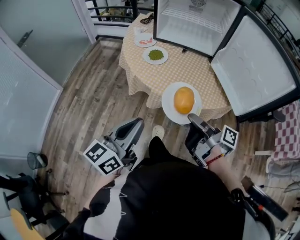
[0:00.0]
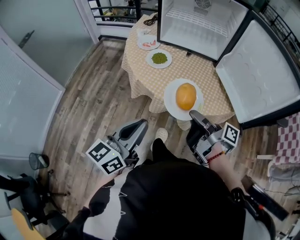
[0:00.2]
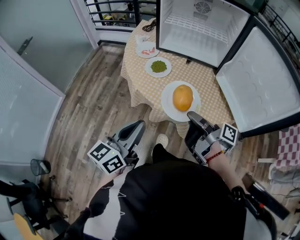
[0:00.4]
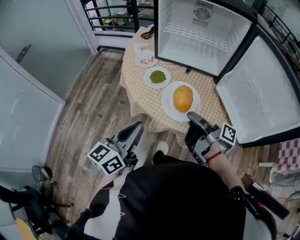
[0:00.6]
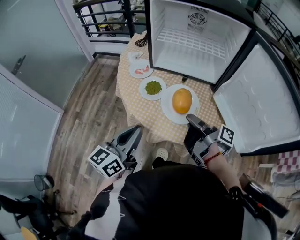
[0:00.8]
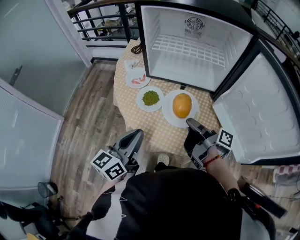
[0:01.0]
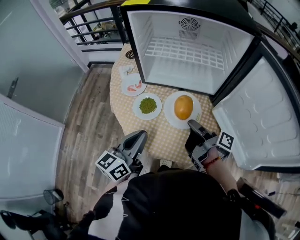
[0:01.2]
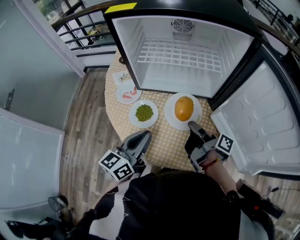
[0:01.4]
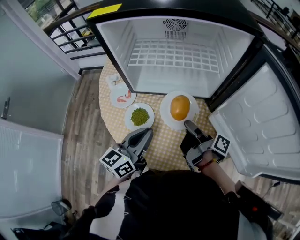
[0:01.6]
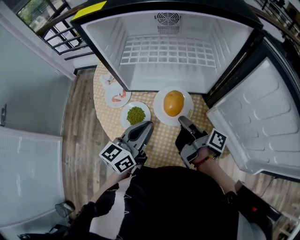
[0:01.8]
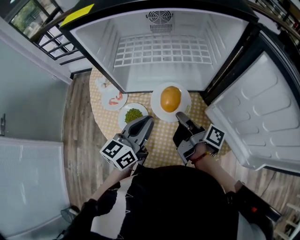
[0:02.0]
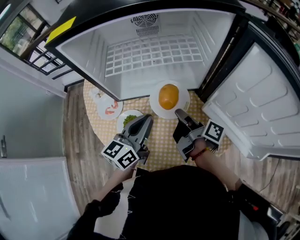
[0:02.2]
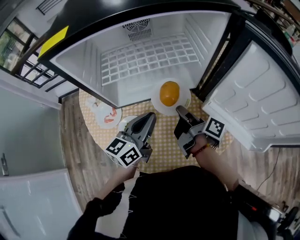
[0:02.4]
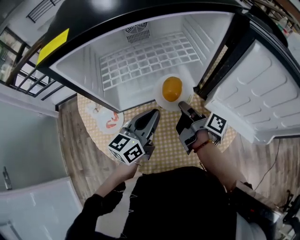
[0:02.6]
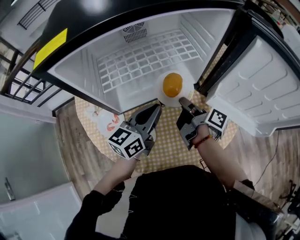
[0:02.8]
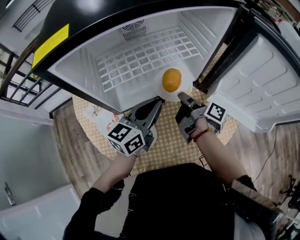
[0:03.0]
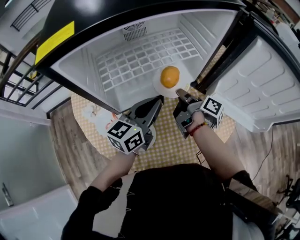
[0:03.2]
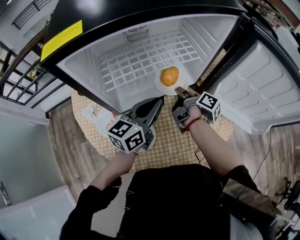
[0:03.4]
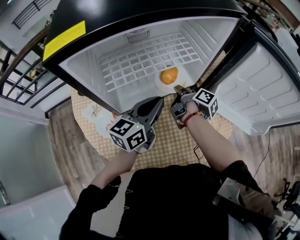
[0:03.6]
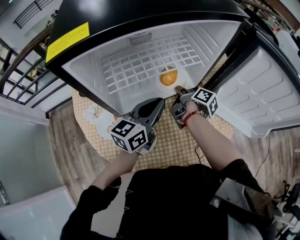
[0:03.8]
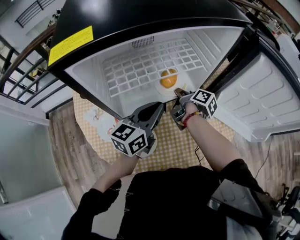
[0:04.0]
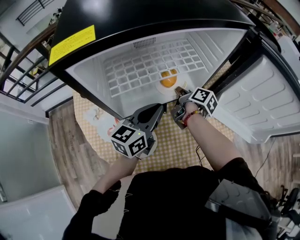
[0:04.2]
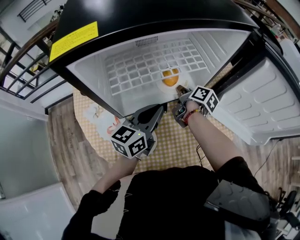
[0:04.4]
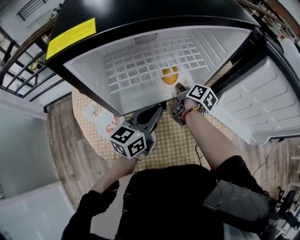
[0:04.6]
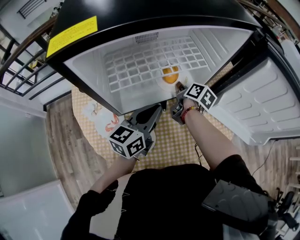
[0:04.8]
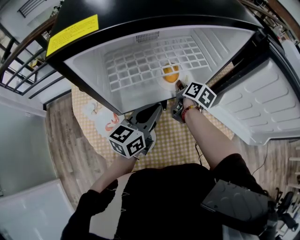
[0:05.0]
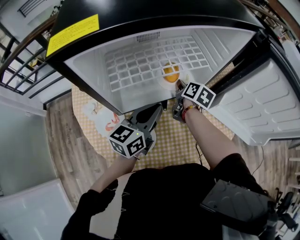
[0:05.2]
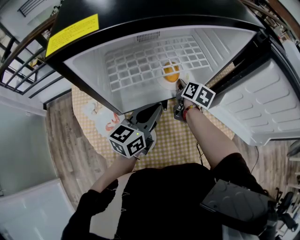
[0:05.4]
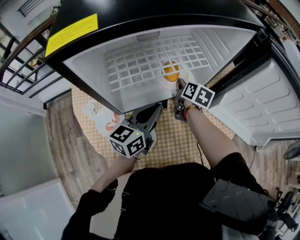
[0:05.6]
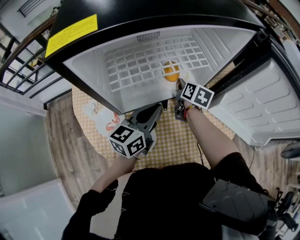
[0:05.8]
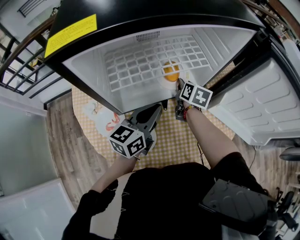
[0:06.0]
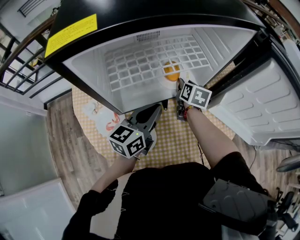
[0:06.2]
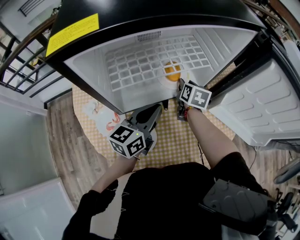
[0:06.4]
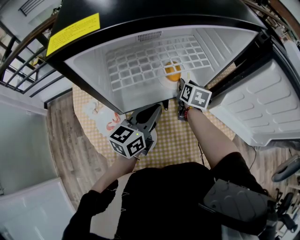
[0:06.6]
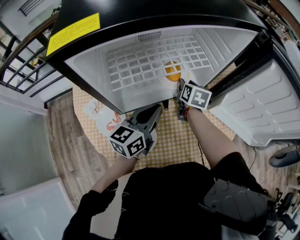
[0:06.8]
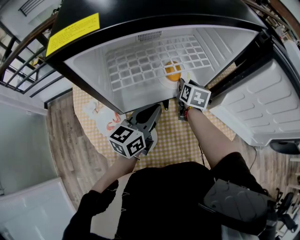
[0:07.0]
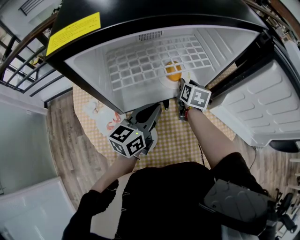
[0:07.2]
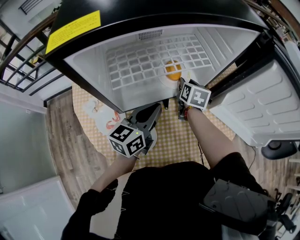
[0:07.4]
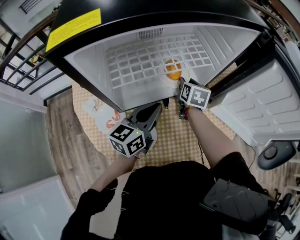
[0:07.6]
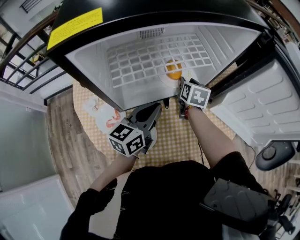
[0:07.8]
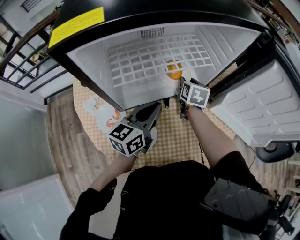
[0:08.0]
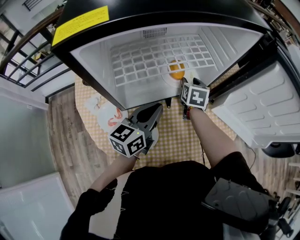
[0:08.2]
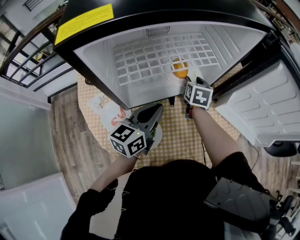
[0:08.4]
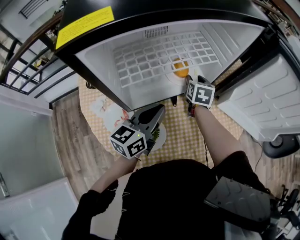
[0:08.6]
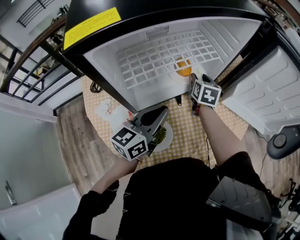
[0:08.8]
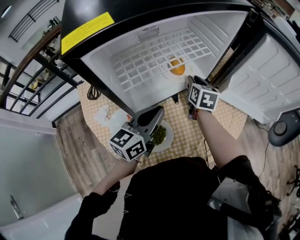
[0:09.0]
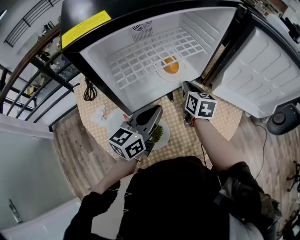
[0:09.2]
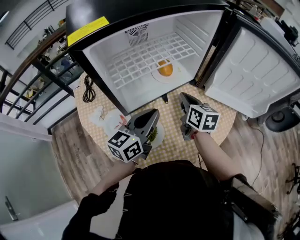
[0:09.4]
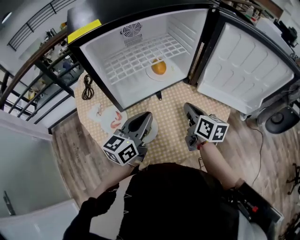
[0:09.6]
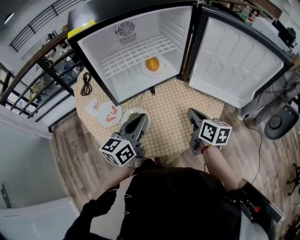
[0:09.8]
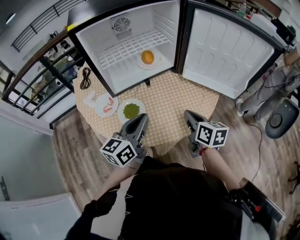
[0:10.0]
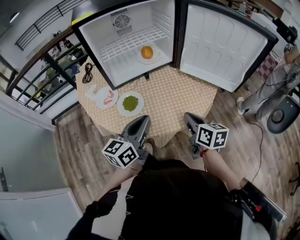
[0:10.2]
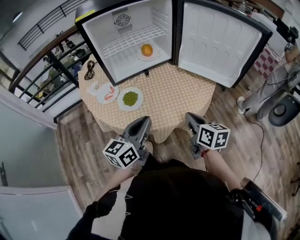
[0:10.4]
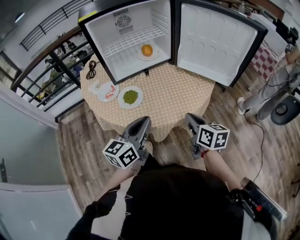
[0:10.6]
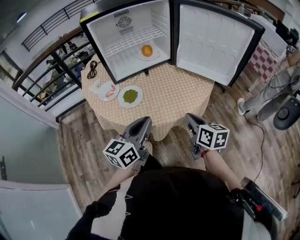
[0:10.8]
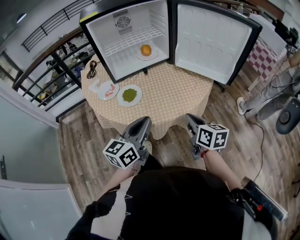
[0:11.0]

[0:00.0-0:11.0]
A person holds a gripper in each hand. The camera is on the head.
0:00.0 to 0:01.6: The left gripper ends up roughly 40 cm from where it was.
0:01.6 to 0:03.2: The left gripper ends up about 15 cm from where it was, and changes its angle by roughly 30 degrees.
0:07.8 to 0:09.4: The left gripper changes place by about 5 cm.
0:09.4 to 0:11.0: The left gripper moves about 25 cm.

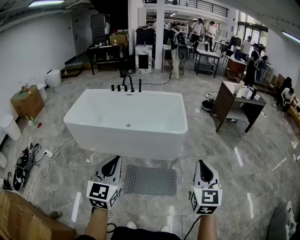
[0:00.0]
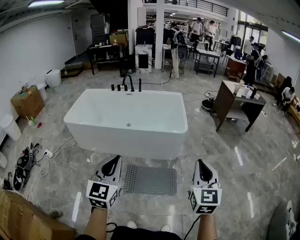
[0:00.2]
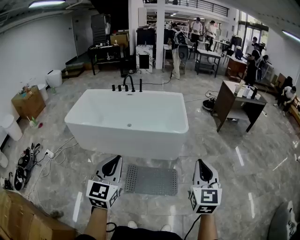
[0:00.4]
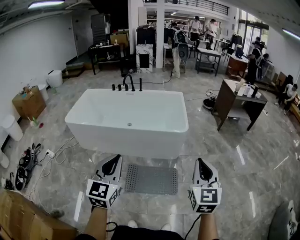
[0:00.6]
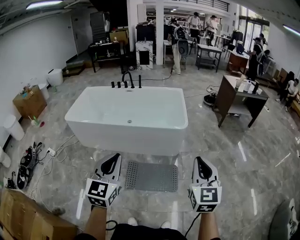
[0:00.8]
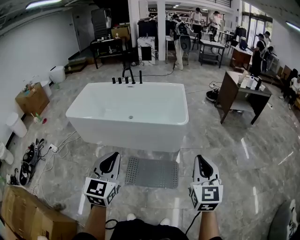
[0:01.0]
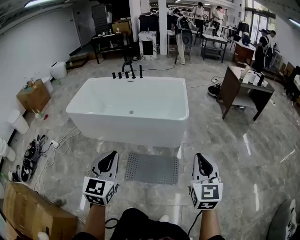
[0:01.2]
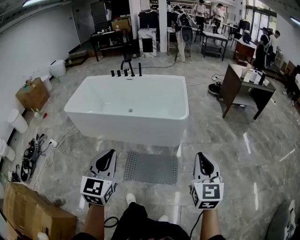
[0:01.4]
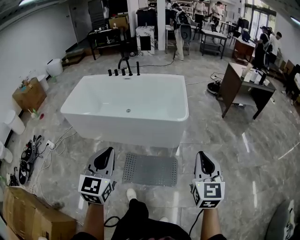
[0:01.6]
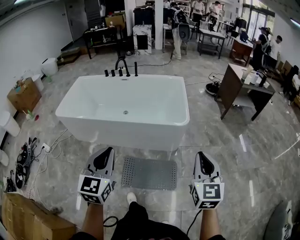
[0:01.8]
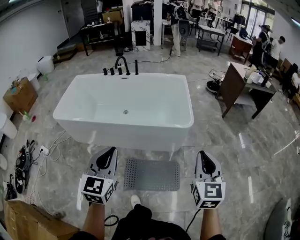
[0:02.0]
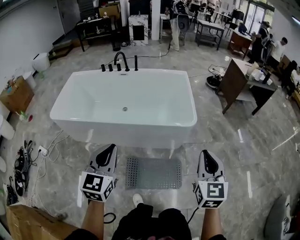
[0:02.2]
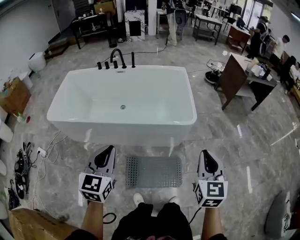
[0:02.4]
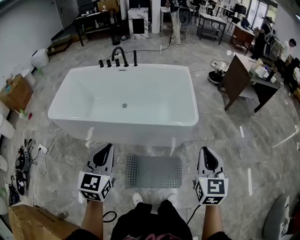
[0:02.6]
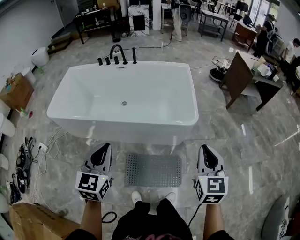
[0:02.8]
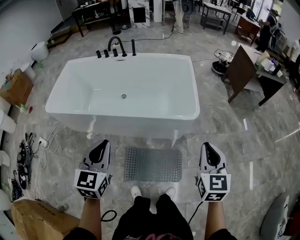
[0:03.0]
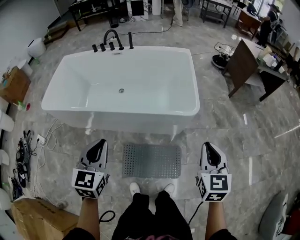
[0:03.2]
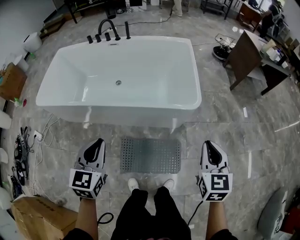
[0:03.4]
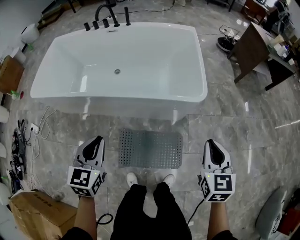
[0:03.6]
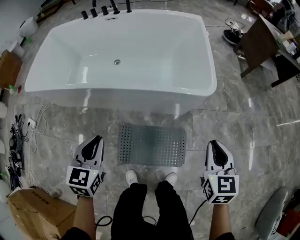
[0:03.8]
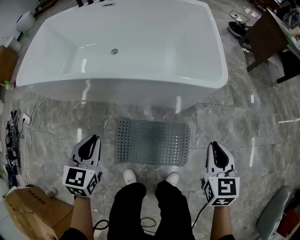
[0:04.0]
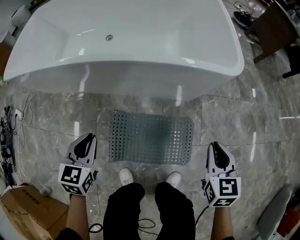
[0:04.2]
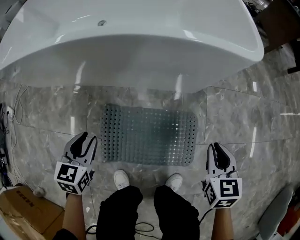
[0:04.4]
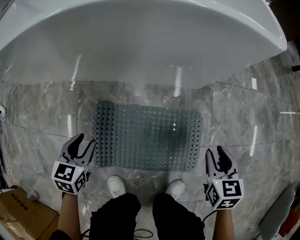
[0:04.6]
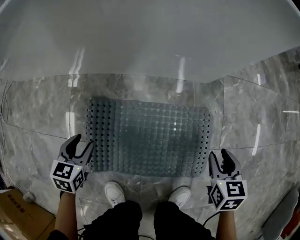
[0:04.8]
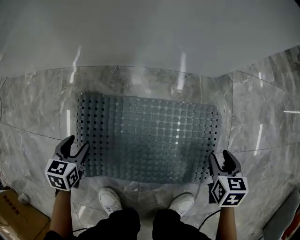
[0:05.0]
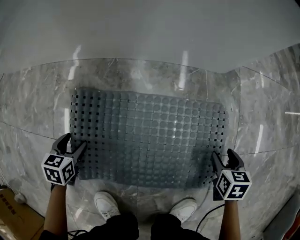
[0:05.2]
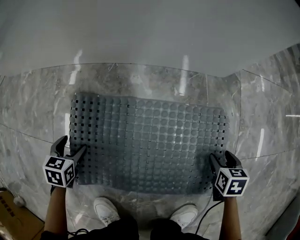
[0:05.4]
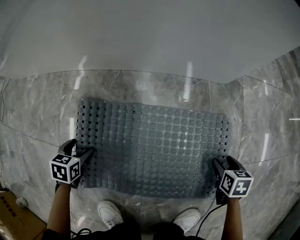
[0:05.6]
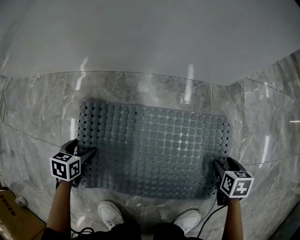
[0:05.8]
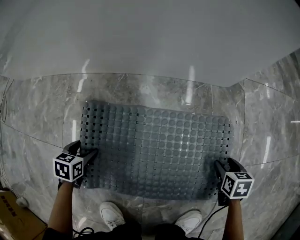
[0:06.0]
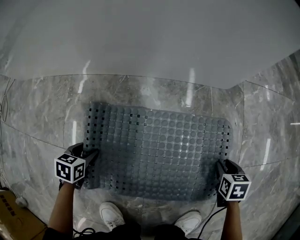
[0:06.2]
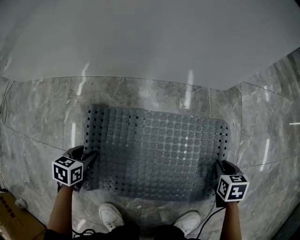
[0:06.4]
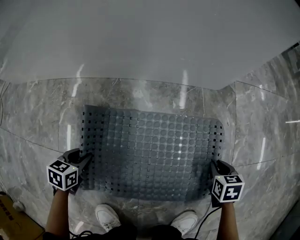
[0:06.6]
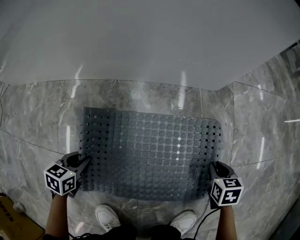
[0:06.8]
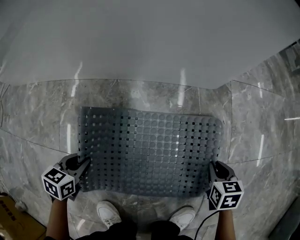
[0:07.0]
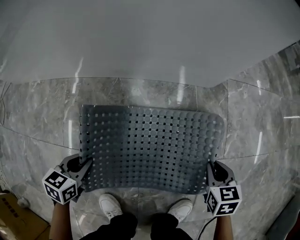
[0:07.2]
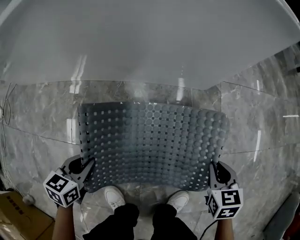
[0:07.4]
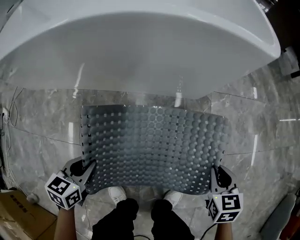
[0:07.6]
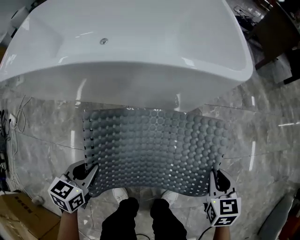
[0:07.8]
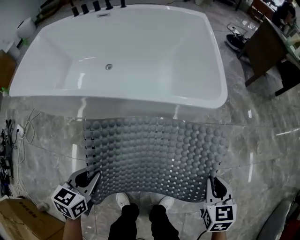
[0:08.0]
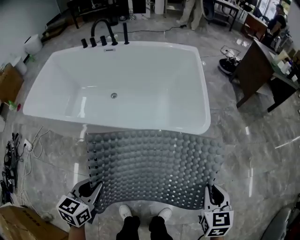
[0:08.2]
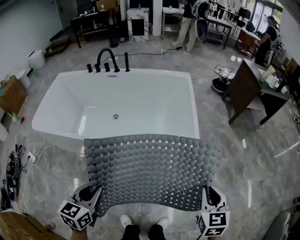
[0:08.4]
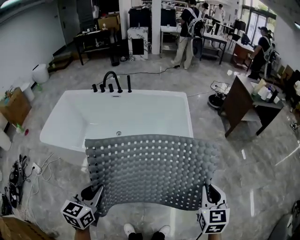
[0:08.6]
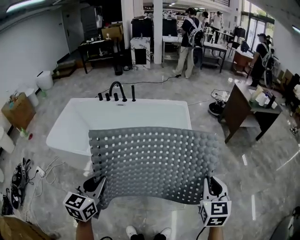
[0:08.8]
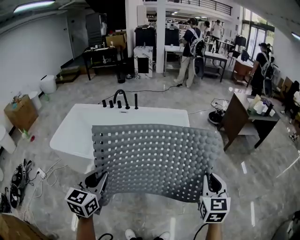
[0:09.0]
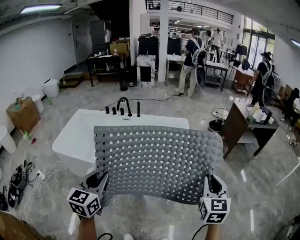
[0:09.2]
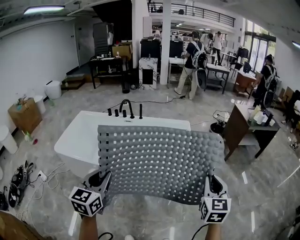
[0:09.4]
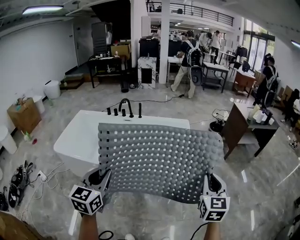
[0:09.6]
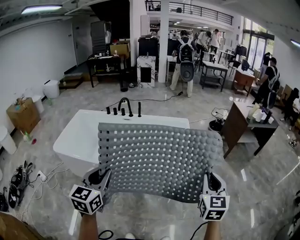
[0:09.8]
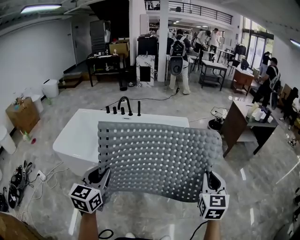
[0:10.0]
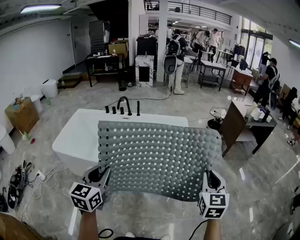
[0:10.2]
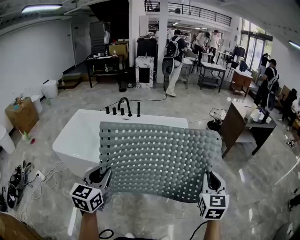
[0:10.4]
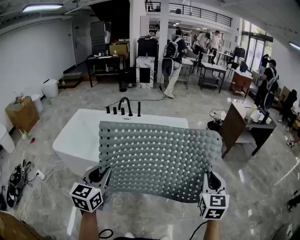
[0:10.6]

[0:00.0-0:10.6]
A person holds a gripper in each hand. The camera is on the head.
0:00.0 to 0:01.6: The two grippers go approximately 10 cm forward and to the right.
0:01.6 to 0:03.0: The grippers both shift forward by some 20 cm.
0:03.0 to 0:04.6: The grippers both shift downward by roughly 60 cm. The left gripper tips its fingers downward by about 30 degrees, and opens up. The right gripper points its fingers approximately 30 degrees further downward, and opens its fingers.
0:04.6 to 0:06.0: Both grippers travel together downward, some 30 cm. The left gripper turns by about 20 degrees, and opens up. The right gripper swivels roughly 20 degrees, and opens up.
0:06.0 to 0:07.6: Both grippers move upward, some 30 cm. The left gripper swivels approximately 20 degrees, and closes its fingers. The right gripper closes.
0:07.6 to 0:09.0: The grippers both shift upward by some 70 cm. The right gripper points its fingers roughly 40 degrees further upward. Meanwhile the left gripper tilts its fingers about 40 degrees upward.
0:09.0 to 0:10.6: The right gripper moves approximately 5 cm.

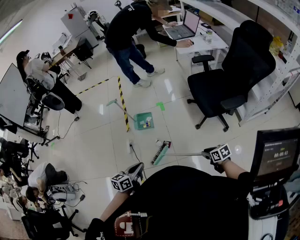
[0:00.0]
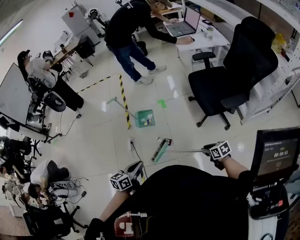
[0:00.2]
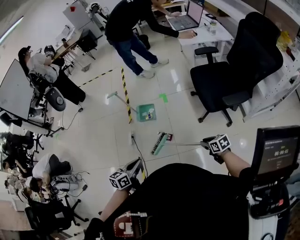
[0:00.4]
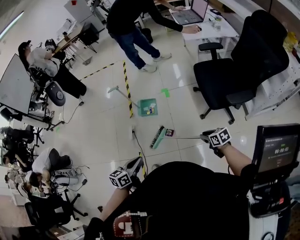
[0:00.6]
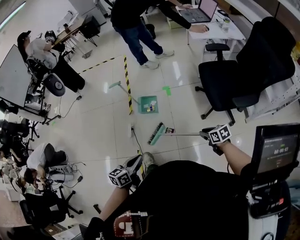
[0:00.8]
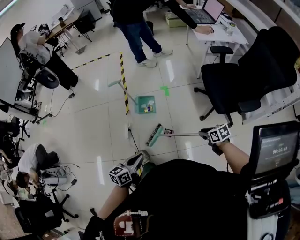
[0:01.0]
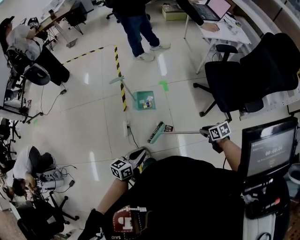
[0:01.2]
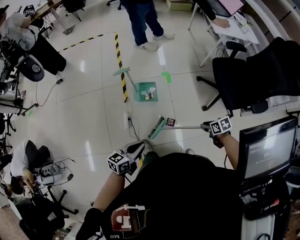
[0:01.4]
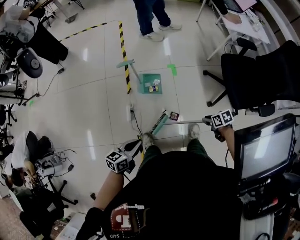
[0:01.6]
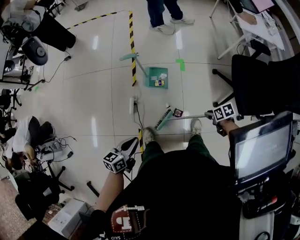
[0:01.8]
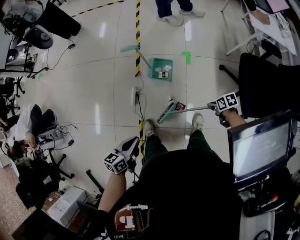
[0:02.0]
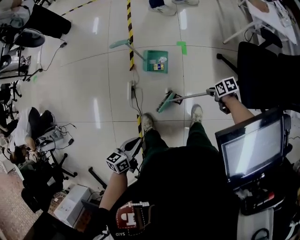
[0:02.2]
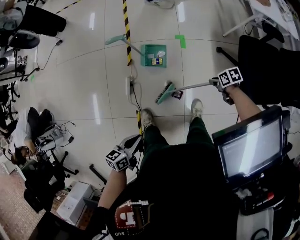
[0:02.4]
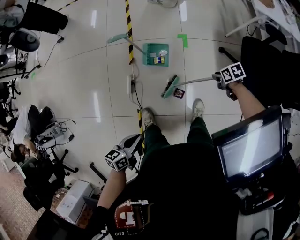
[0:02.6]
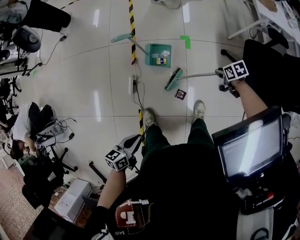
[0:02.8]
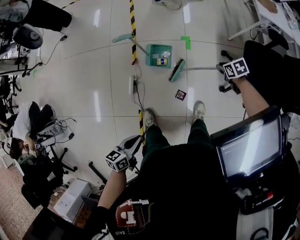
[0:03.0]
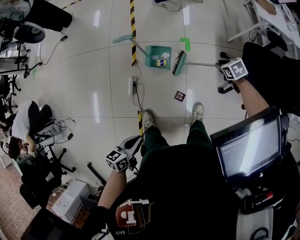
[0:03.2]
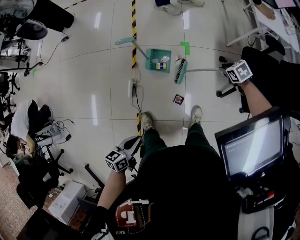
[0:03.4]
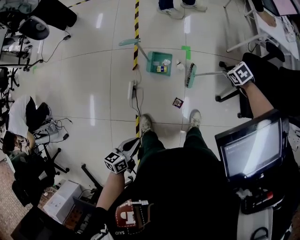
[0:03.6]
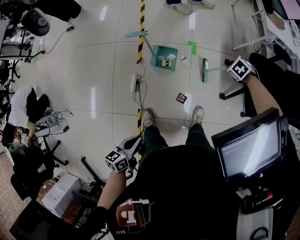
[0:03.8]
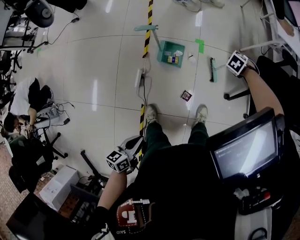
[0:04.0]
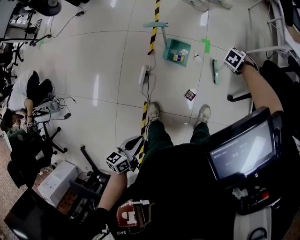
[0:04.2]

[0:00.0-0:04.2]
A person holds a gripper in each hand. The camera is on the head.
0:00.0 to 0:01.4: The left gripper changes place by roughly 25 cm.
0:01.4 to 0:02.8: The left gripper moves downward, approximately 5 cm, and rotates roughly 20 degrees.
0:02.8 to 0:04.2: The left gripper shifts by about 10 cm.
